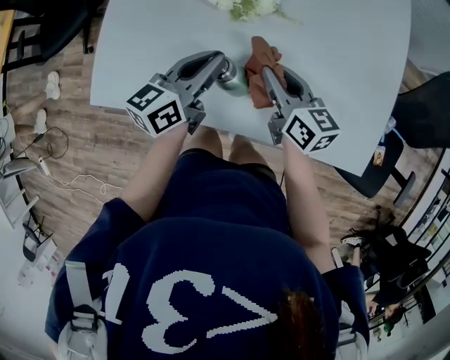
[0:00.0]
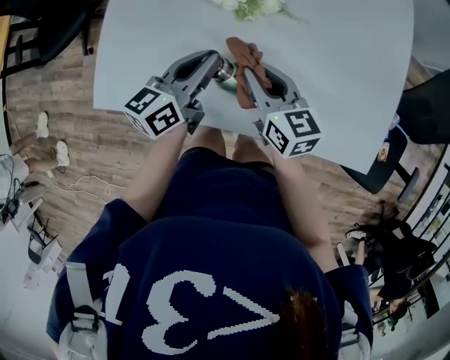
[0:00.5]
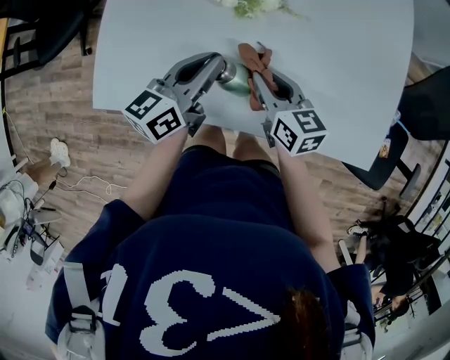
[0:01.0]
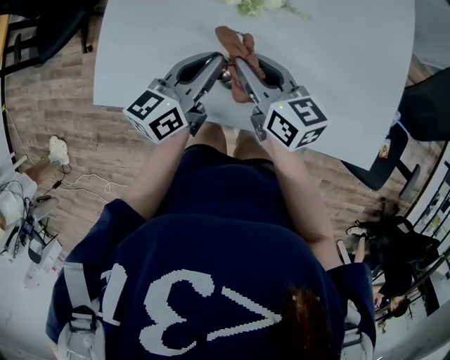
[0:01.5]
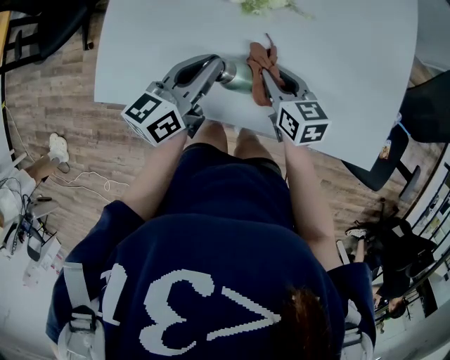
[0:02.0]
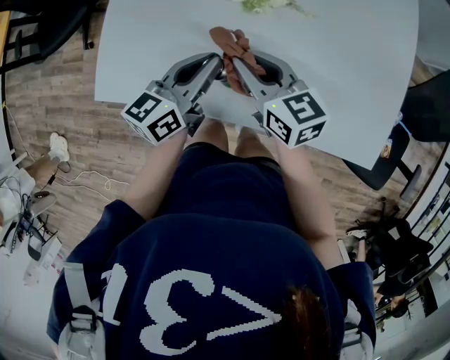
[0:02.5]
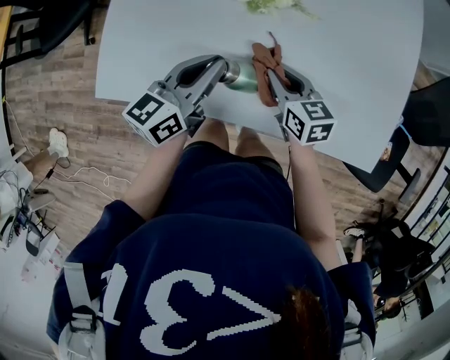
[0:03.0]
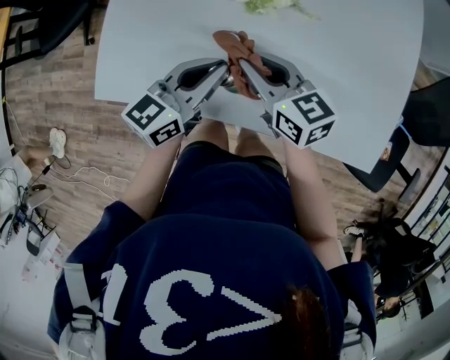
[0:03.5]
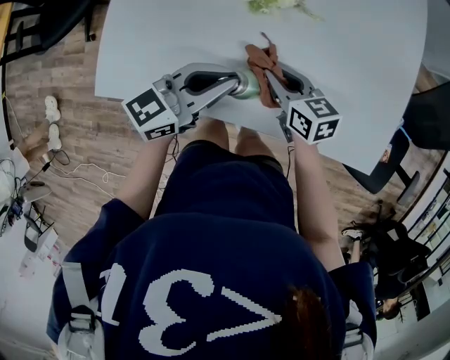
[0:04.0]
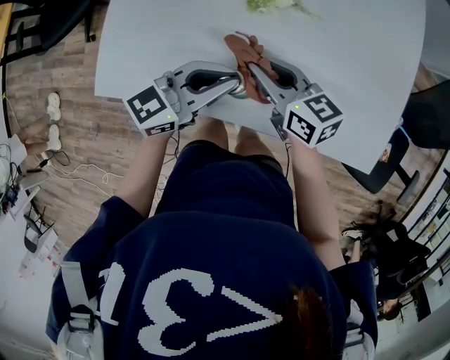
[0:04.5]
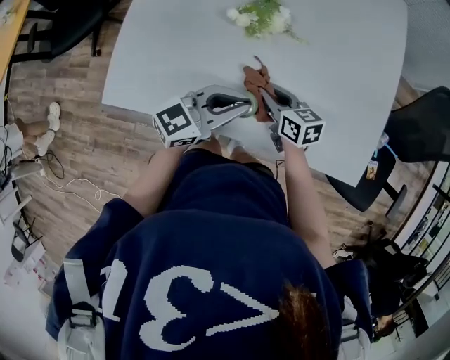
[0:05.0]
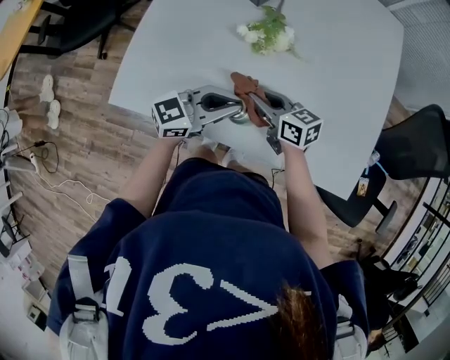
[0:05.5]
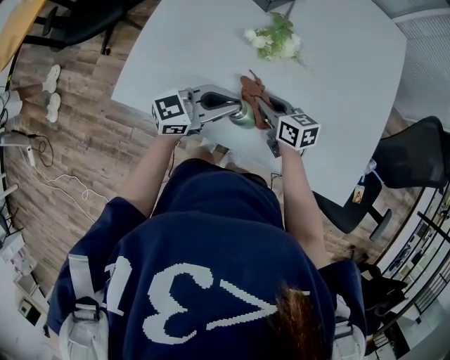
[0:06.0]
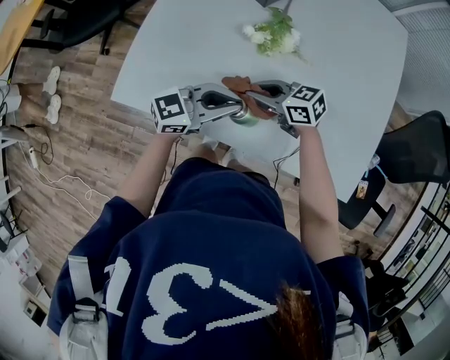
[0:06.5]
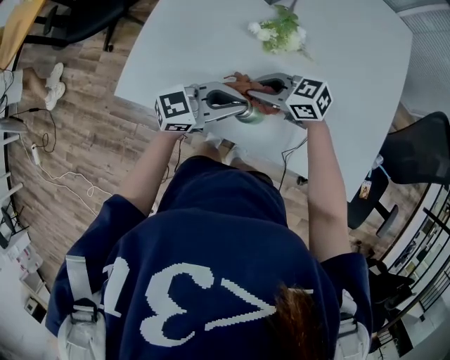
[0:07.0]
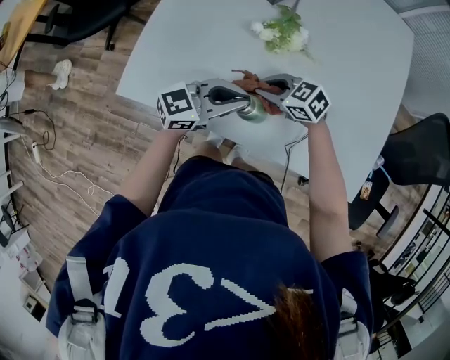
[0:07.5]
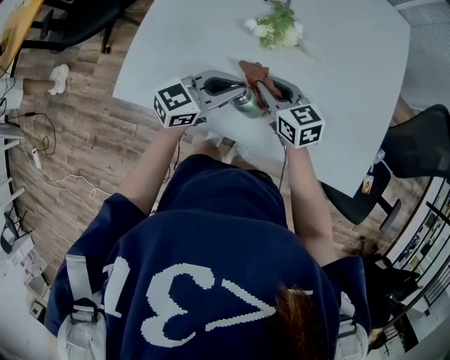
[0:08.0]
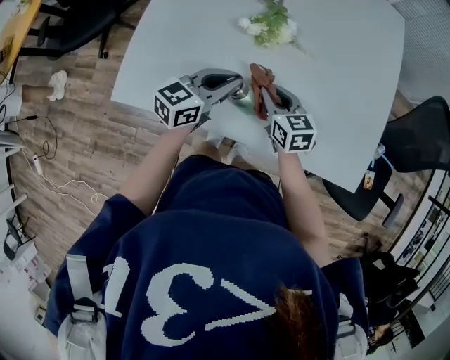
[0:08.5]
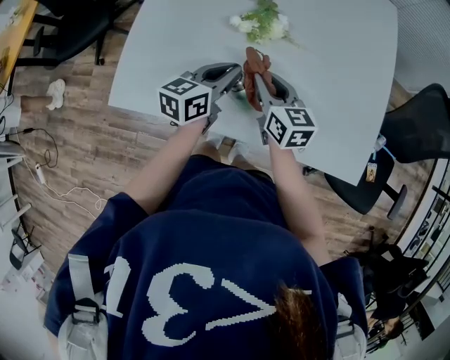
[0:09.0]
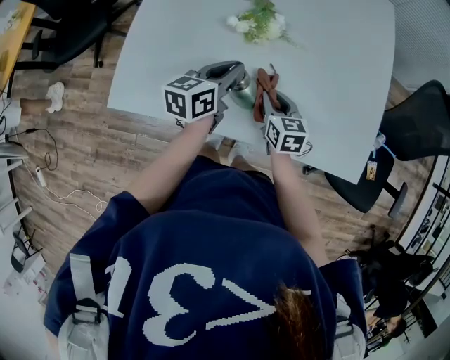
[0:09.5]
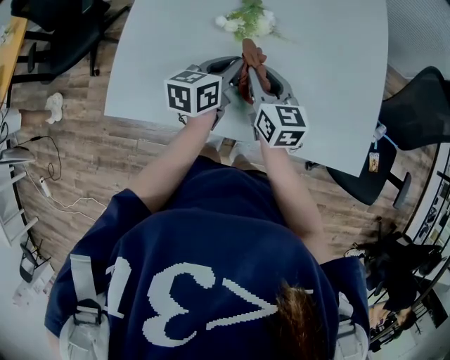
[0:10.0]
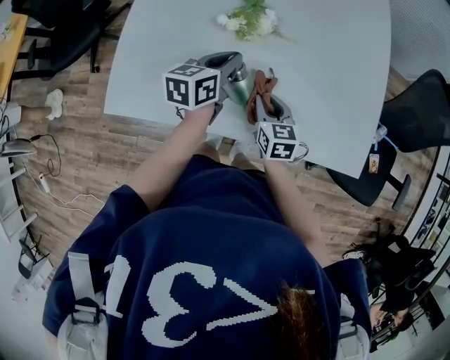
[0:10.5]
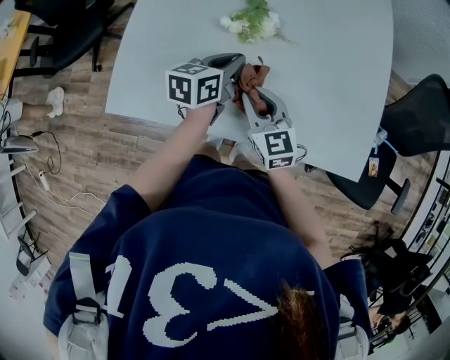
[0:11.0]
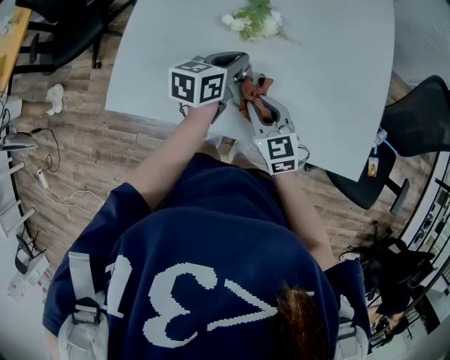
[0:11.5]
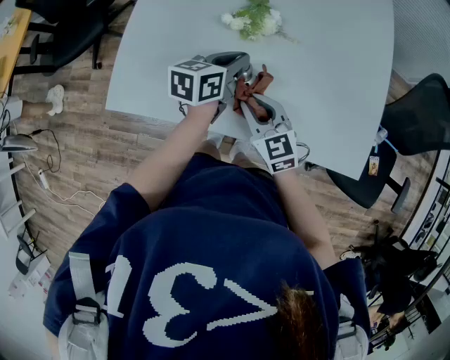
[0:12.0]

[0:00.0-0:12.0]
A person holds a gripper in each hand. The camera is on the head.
0:00.0 to 0:02.0: The right gripper goes roughly 5 cm downward.
0:02.0 to 0:04.0: The right gripper moves up and down over about 10 cm, changing direction 3 times, while the left gripper moves approximately 5 cm, and turns by roughly 30 degrees.
0:04.0 to 0:06.0: The right gripper moves up and down over about 10 cm, changing direction 2 times.
0:06.0 to 0:08.0: The right gripper goes up and down, approximately 5 cm each way, reversing 2 times.
0:08.0 to 0:10.0: The right gripper rotates approximately 30 degrees, while the left gripper goes some 5 cm forward, and turns by some 30 degrees.
0:10.0 to 0:12.0: The right gripper shifts about 10 cm backward, and rotates roughly 30 degrees.

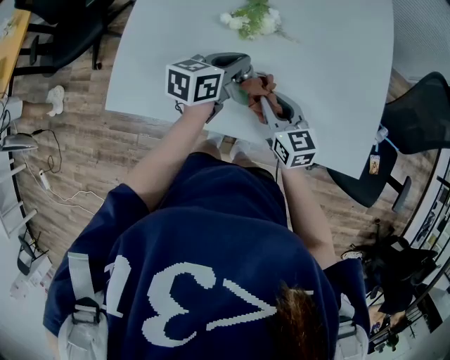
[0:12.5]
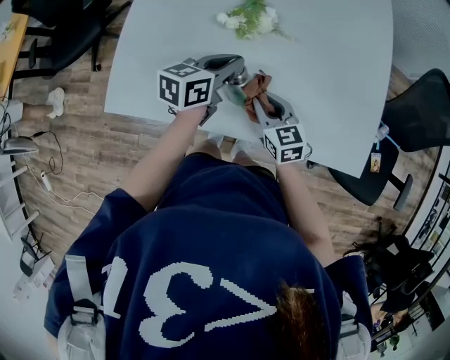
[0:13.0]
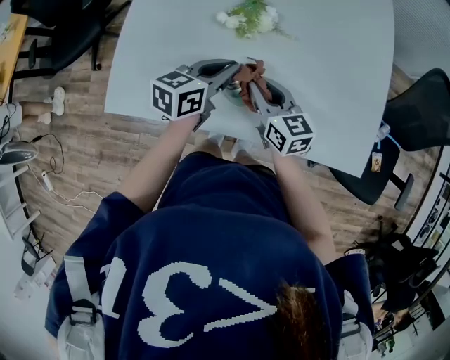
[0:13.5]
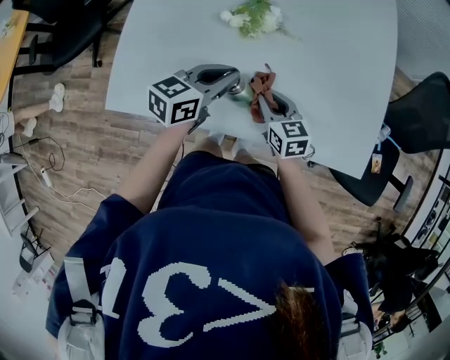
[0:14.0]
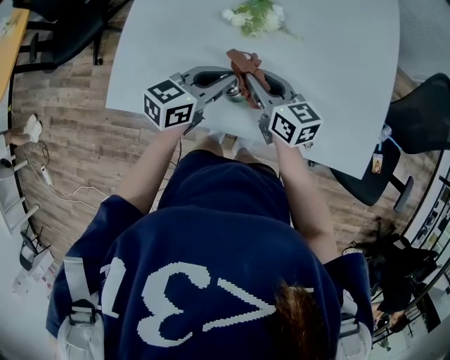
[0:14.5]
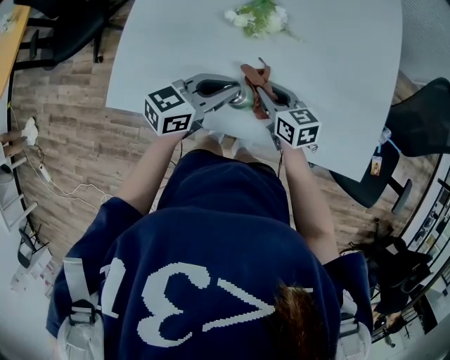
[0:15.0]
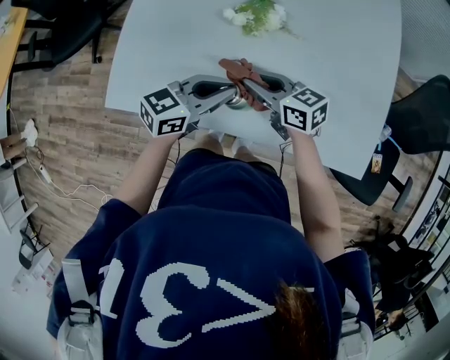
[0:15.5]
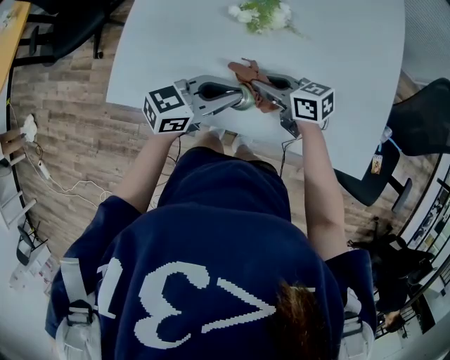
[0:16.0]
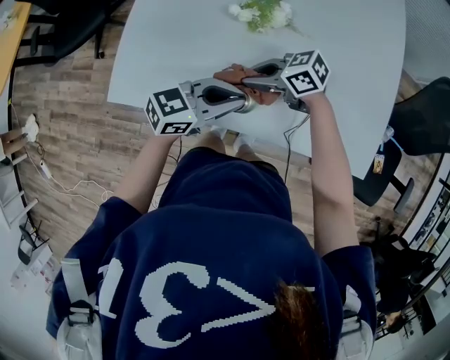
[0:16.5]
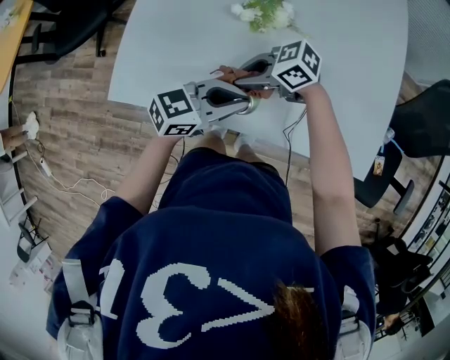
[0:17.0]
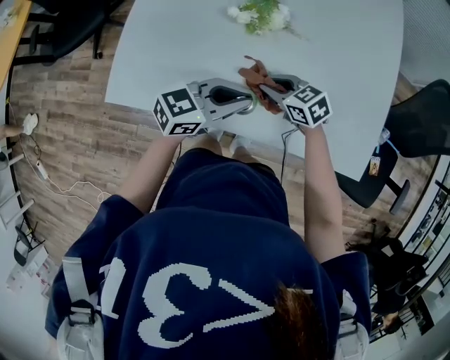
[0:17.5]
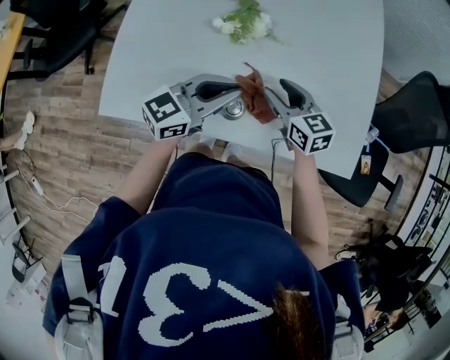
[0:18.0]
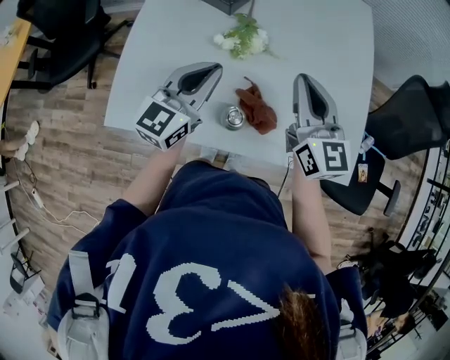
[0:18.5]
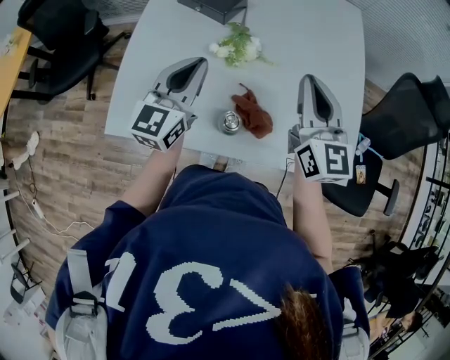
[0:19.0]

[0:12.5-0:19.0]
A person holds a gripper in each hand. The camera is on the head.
0:12.5 to 0:14.5: The right gripper is displaced to the left by some 5 cm, and moves some 5 cm downward and comes back. Meanwhile the left gripper heads backward, covering roughly 5 cm.
0:14.5 to 0:17.0: The right gripper ends up some 10 cm from where it was, and changes its angle by approximately 60 degrees. Meanwhile the left gripper moves approximately 5 cm.
0:17.0 to 0:19.0: The left gripper heads upward, covering about 15 cm, and rotates roughly 50 degrees, while the right gripper heads upward, covering about 25 cm, changes its angle by approximately 100 degrees, and opens and closes again.

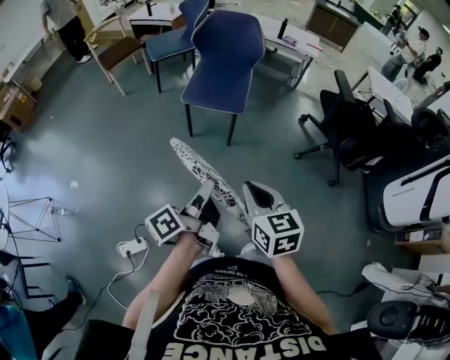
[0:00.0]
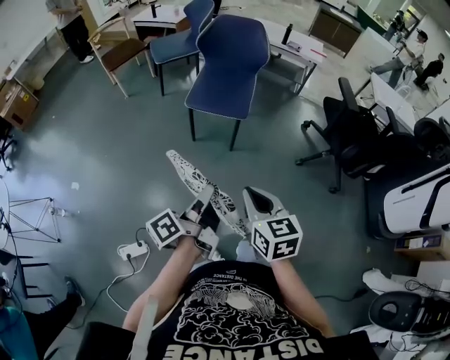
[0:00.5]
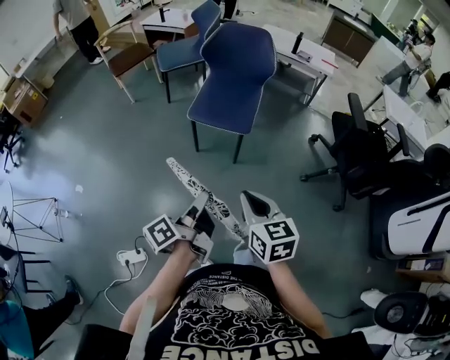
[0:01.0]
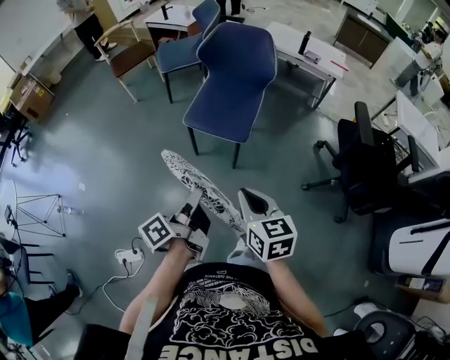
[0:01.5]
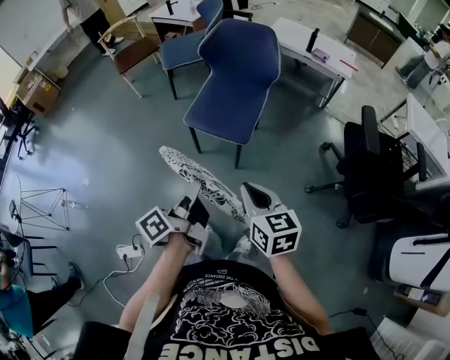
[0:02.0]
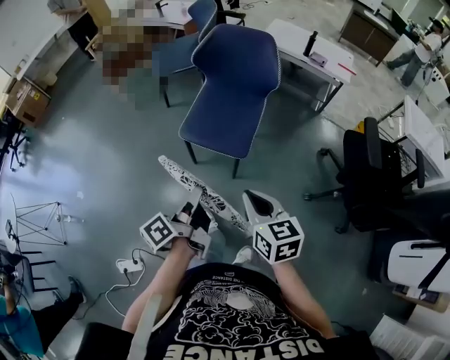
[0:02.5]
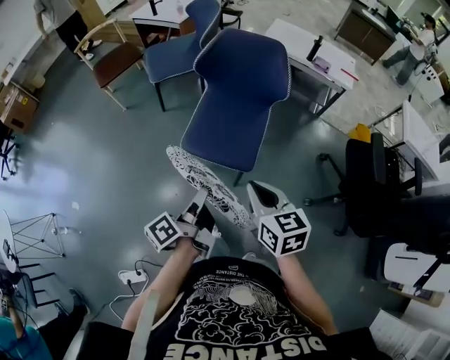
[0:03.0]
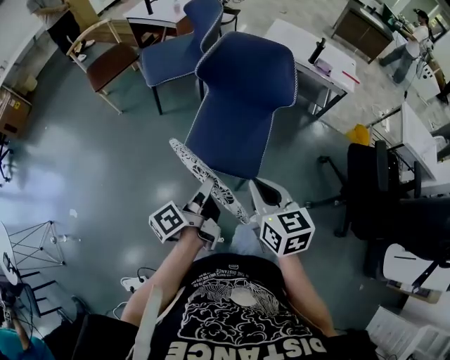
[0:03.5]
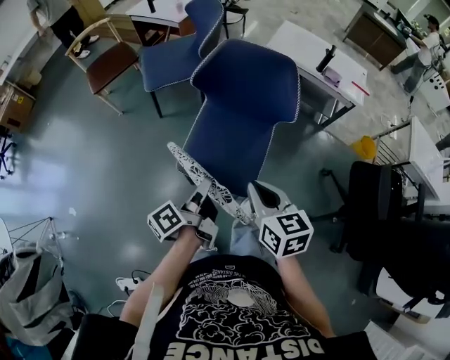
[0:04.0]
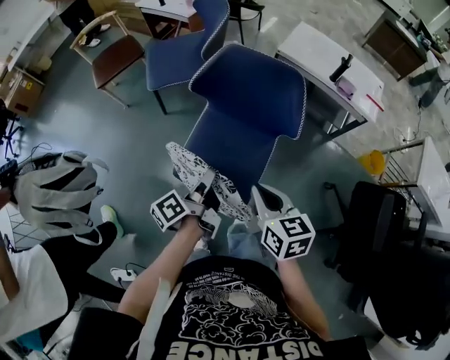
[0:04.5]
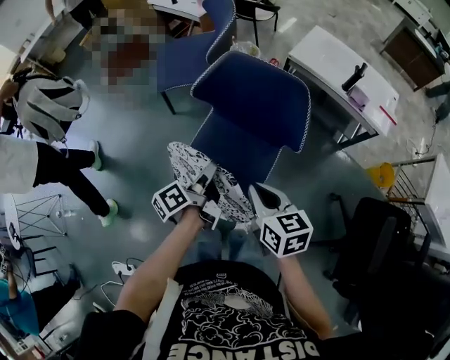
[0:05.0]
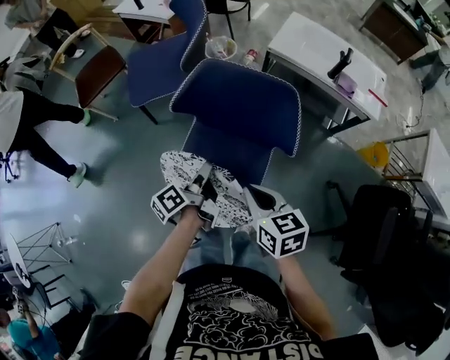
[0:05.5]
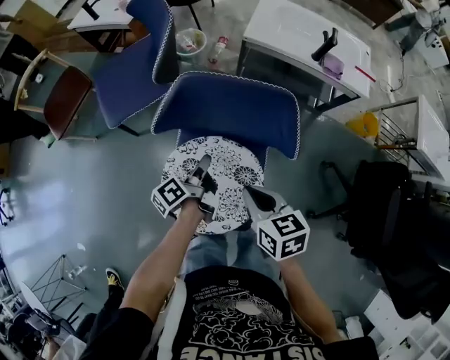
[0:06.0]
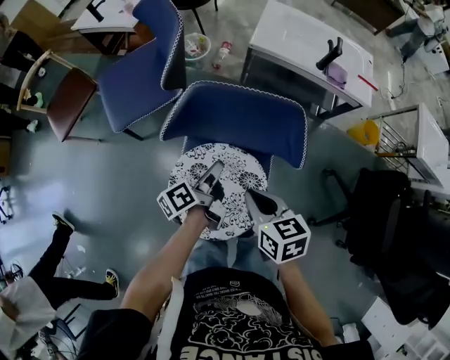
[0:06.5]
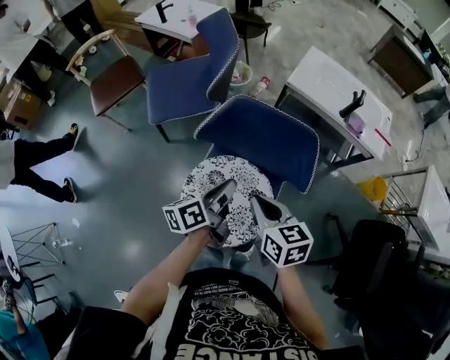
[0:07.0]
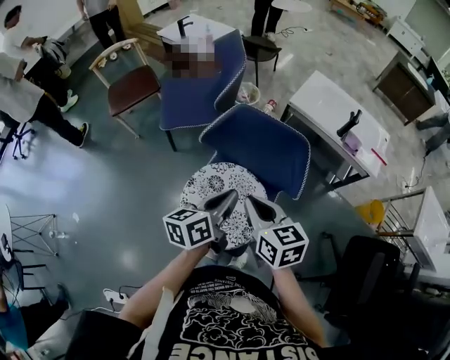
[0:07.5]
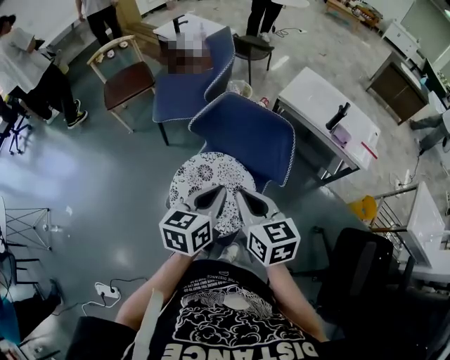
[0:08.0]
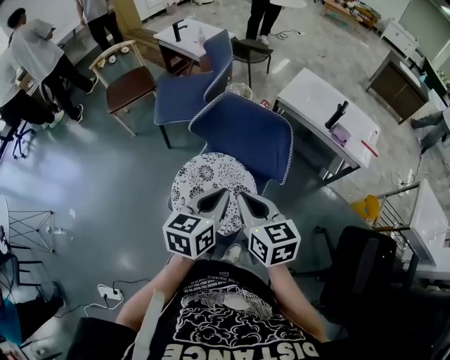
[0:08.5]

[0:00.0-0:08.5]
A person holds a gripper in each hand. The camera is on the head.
0:00.0 to 0:02.0: The right gripper moves roughly 25 cm.
0:02.0 to 0:04.0: The right gripper shifts by approximately 30 cm.
0:04.0 to 0:06.5: The right gripper moves approximately 25 cm.
0:06.5 to 0:08.5: The right gripper travels upward by roughly 10 cm, and changes its angle by about 30 degrees.
